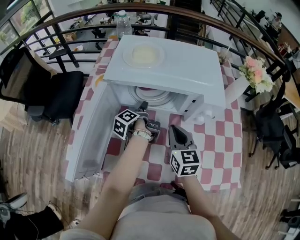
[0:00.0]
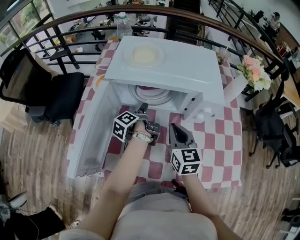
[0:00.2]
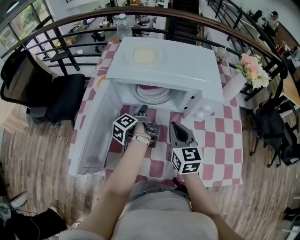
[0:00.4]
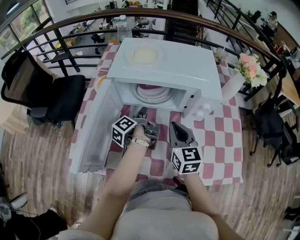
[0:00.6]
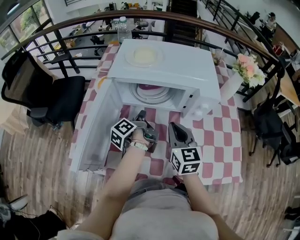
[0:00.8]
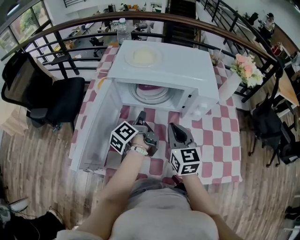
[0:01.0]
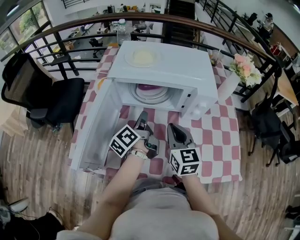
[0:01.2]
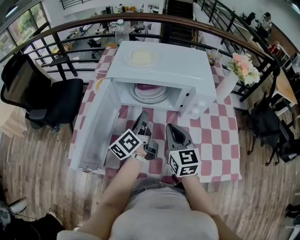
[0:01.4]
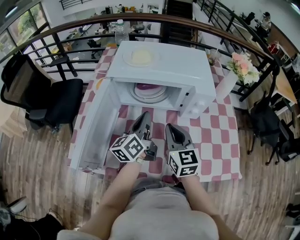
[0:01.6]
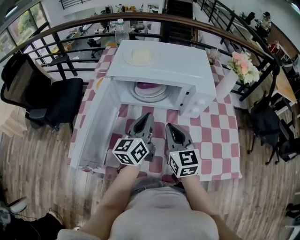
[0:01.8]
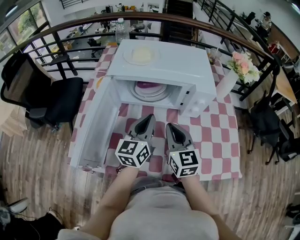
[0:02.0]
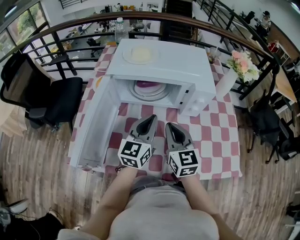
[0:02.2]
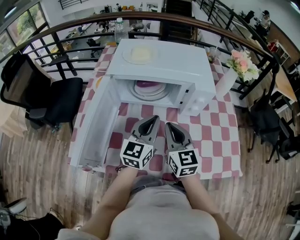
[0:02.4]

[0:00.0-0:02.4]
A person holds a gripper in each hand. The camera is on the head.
0:00.0 to 0:01.2: The right gripper changes place by approximately 10 cm.

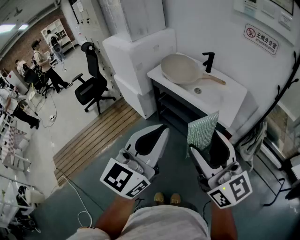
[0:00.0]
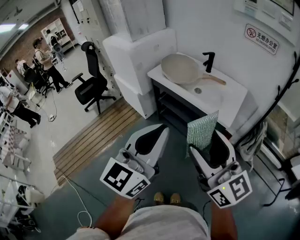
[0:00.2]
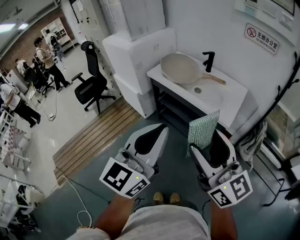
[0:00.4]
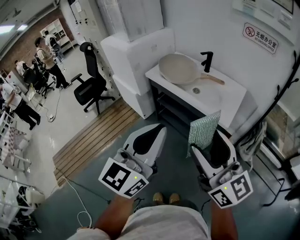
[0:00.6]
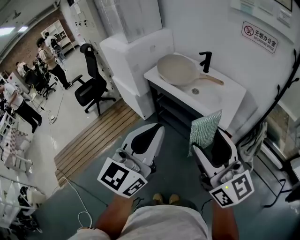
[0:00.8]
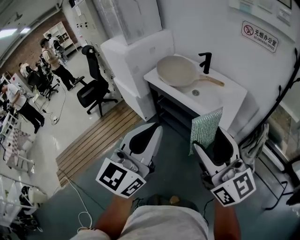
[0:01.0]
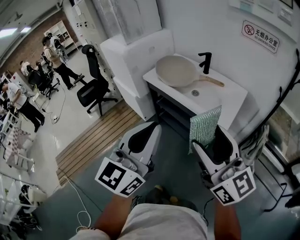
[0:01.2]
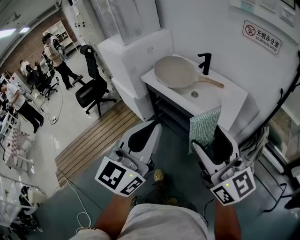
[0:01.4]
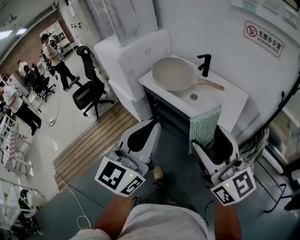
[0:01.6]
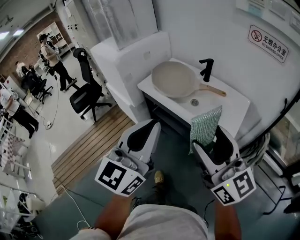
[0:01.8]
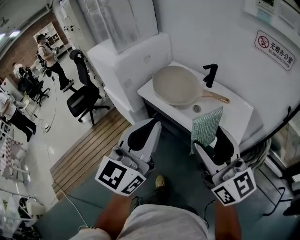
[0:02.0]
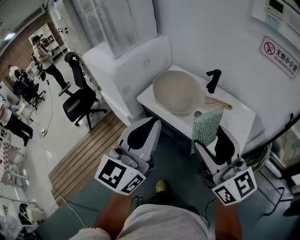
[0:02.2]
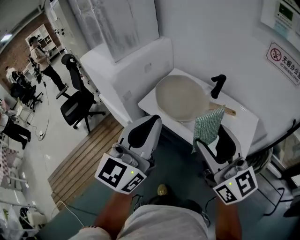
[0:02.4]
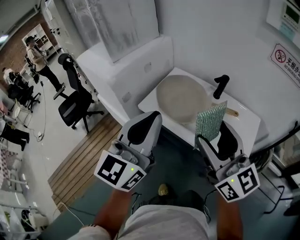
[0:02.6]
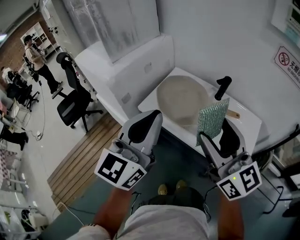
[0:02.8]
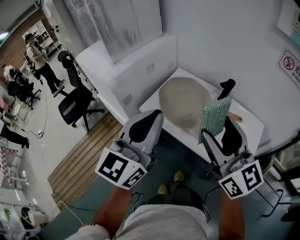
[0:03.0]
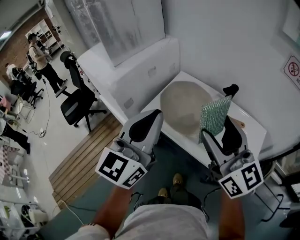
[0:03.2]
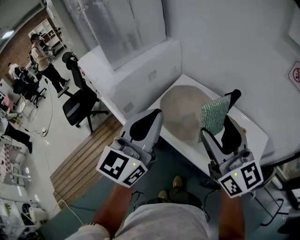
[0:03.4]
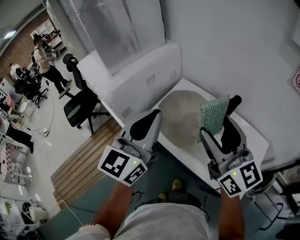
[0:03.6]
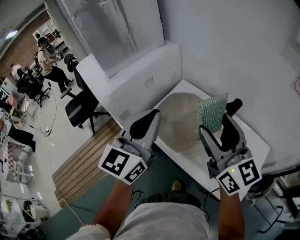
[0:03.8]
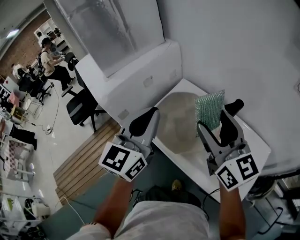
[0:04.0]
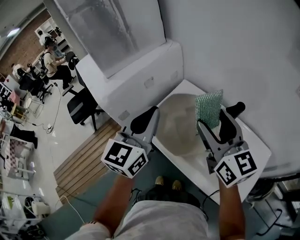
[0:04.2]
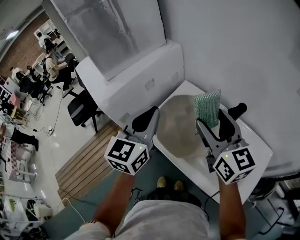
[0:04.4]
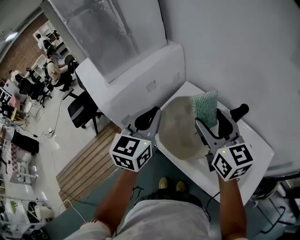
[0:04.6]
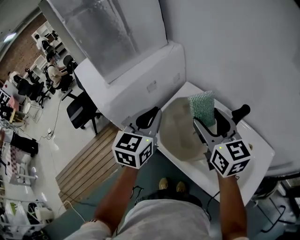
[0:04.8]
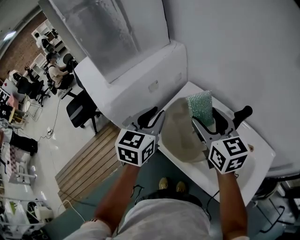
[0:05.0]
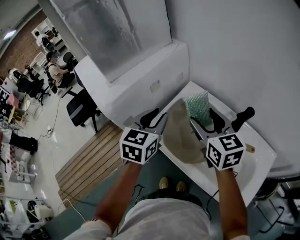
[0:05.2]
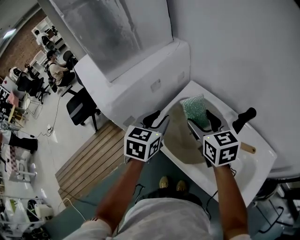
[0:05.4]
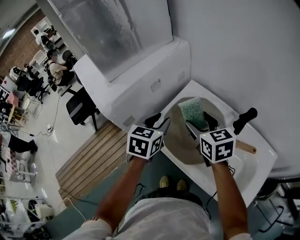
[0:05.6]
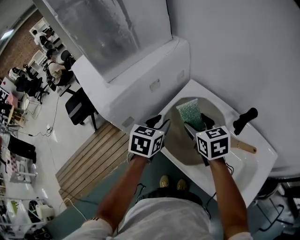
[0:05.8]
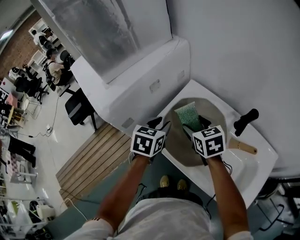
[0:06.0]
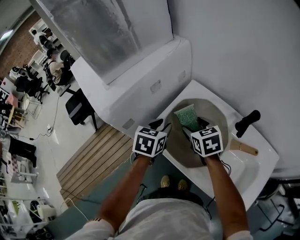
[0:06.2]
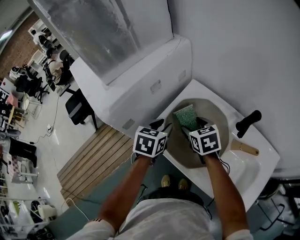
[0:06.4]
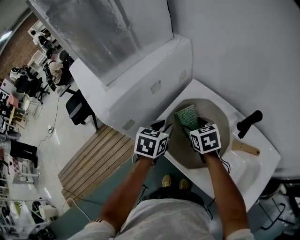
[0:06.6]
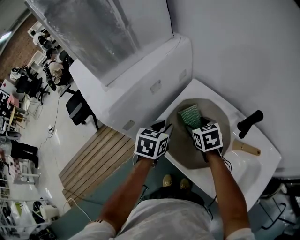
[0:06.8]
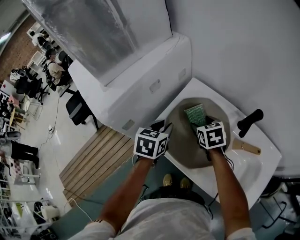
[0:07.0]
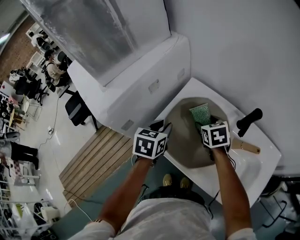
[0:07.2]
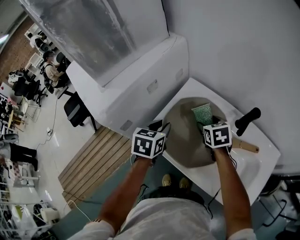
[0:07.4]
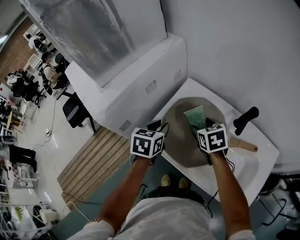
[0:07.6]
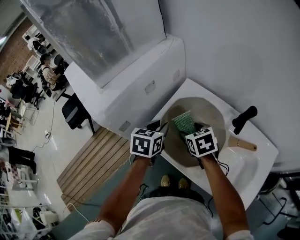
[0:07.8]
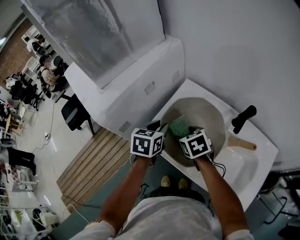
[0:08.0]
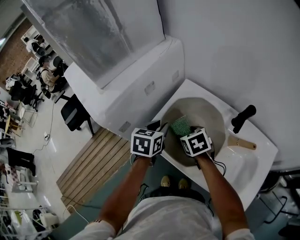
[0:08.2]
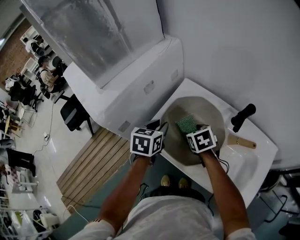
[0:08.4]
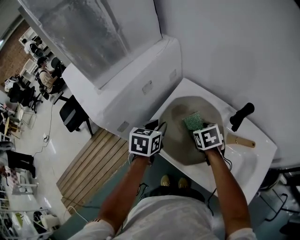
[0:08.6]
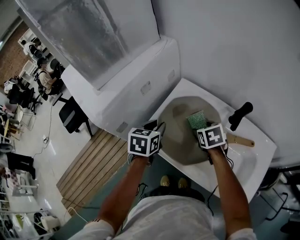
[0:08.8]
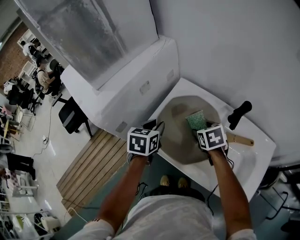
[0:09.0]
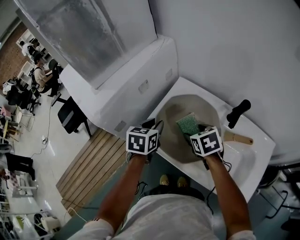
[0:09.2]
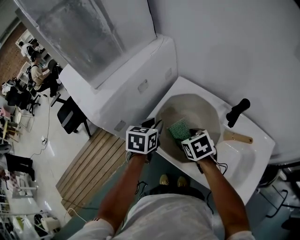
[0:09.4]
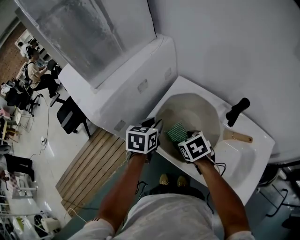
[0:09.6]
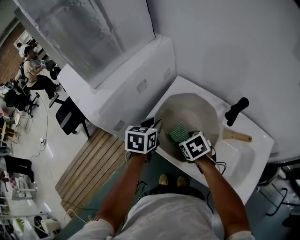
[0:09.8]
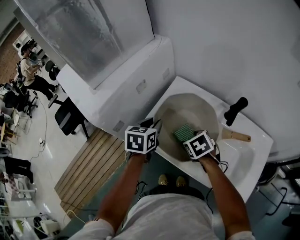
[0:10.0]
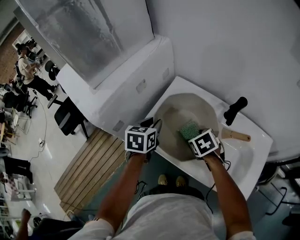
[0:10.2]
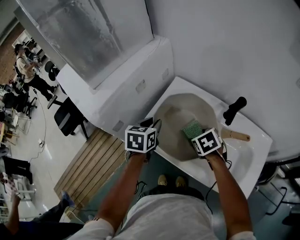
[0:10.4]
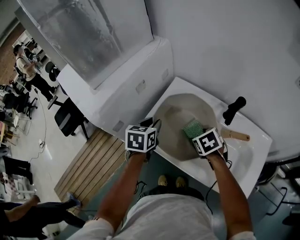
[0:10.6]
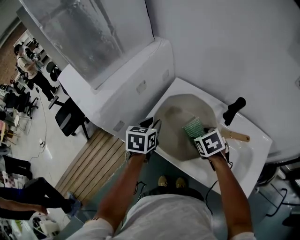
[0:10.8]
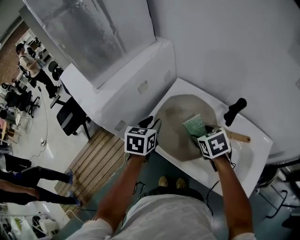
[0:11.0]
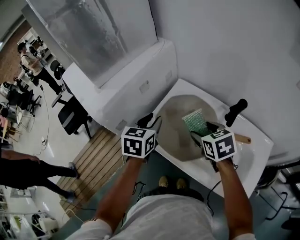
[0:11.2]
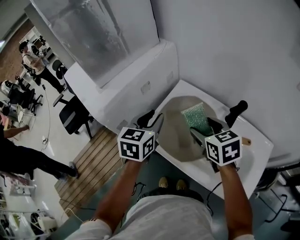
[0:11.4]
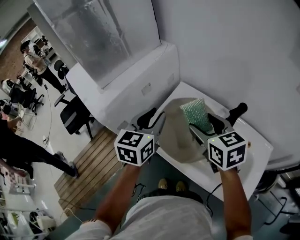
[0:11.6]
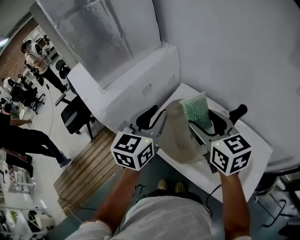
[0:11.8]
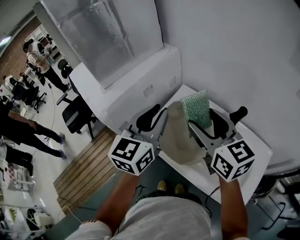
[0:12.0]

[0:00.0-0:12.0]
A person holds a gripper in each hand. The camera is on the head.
0:00.0 to 0:01.6: The right gripper shifts about 10 cm forward and to the right. Meanwhile the left gripper heads forward, covering some 10 cm.
0:01.6 to 0:03.0: The two grippers go roughly 30 cm forward.
0:03.0 to 0:04.4: Both grippers travel together forward, some 20 cm.
0:04.4 to 0:06.0: The right gripper moves downward and forward, roughly 20 cm, and tips its fingers downward by approximately 40 degrees, while the left gripper heads downward, covering some 20 cm, tilts its fingers about 30 degrees downward, and opens up.
0:09.0 to 0:10.4: The right gripper reaches about 10 cm to the left, then returns.
0:10.4 to 0:12.0: Both grippers move upward, some 25 cm. The right gripper points its fingers some 50 degrees further upward, while the left gripper angles its fingers upward, by roughly 30 degrees.

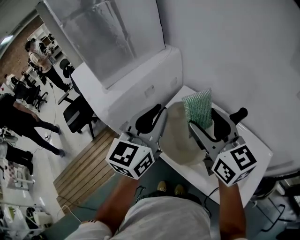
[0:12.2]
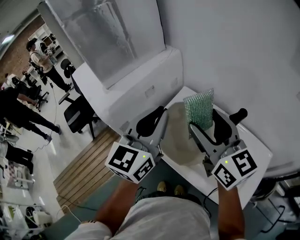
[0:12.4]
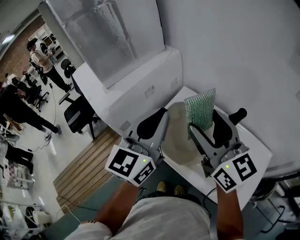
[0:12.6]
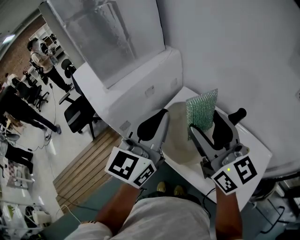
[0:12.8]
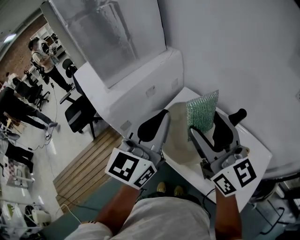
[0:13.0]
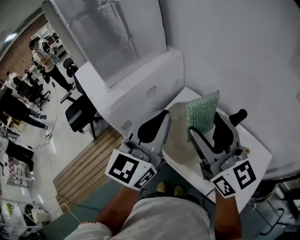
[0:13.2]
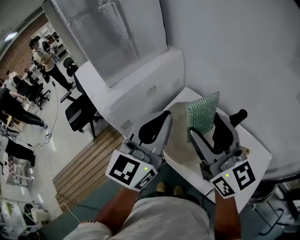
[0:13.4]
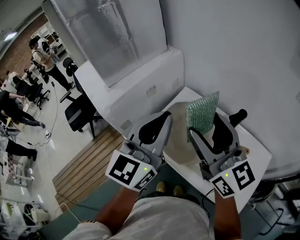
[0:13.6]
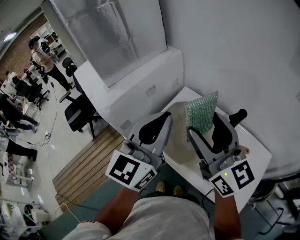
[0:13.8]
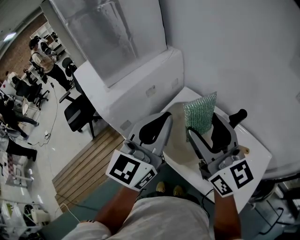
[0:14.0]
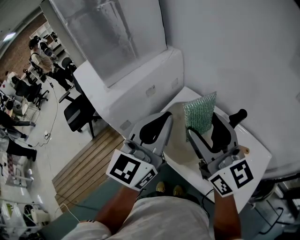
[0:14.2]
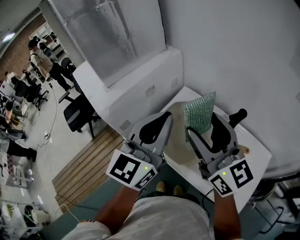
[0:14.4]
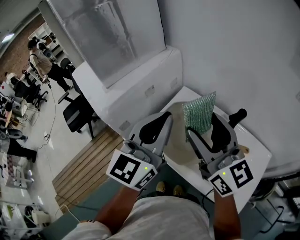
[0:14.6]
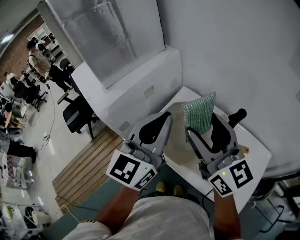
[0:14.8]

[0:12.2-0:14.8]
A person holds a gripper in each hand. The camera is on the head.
0:12.2 to 0:13.4: The right gripper ends up some 5 cm from where it was, while the left gripper moves roughly 5 cm.
0:13.4 to 0:14.8: Both grippers stay put.

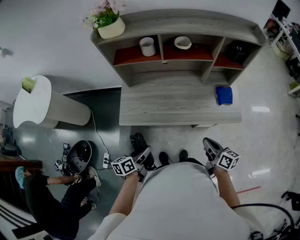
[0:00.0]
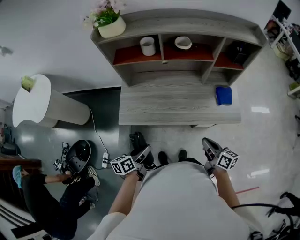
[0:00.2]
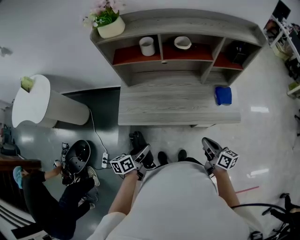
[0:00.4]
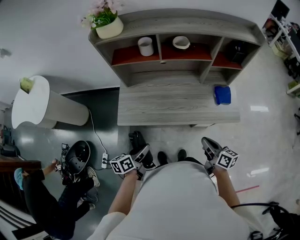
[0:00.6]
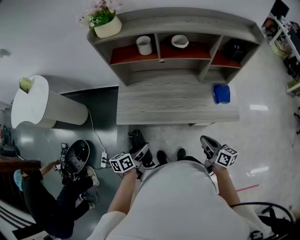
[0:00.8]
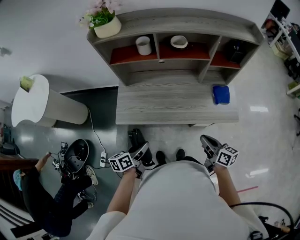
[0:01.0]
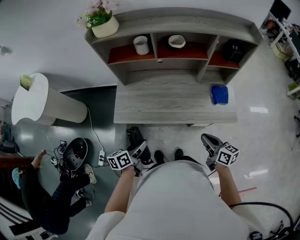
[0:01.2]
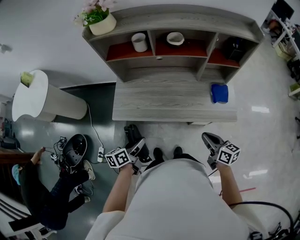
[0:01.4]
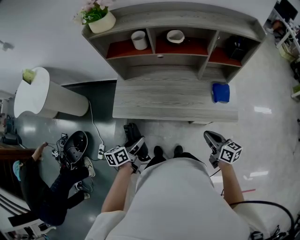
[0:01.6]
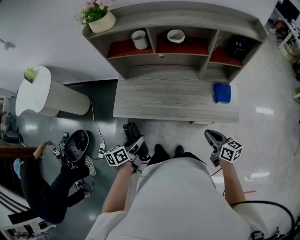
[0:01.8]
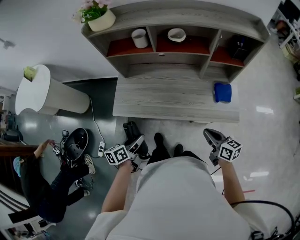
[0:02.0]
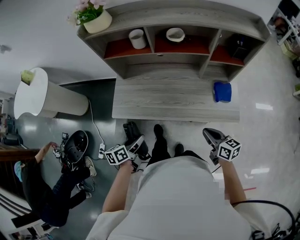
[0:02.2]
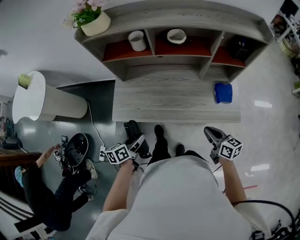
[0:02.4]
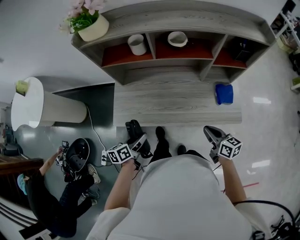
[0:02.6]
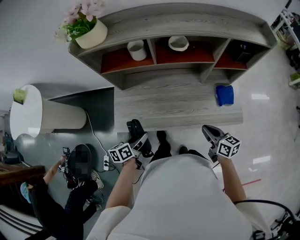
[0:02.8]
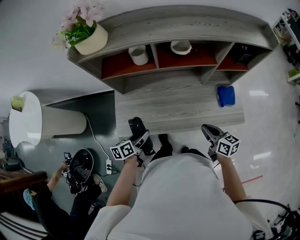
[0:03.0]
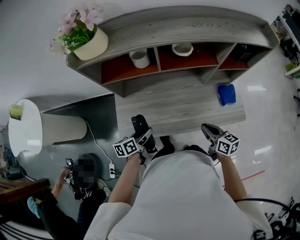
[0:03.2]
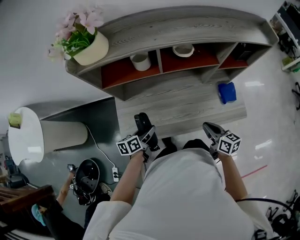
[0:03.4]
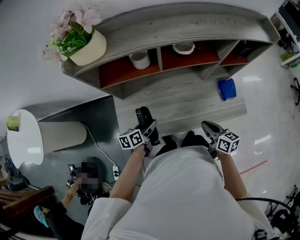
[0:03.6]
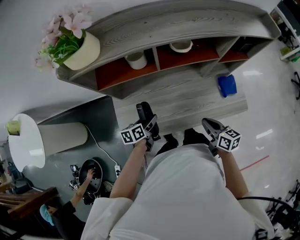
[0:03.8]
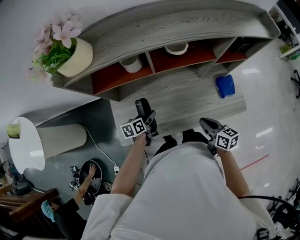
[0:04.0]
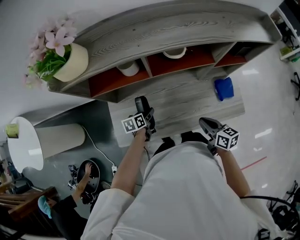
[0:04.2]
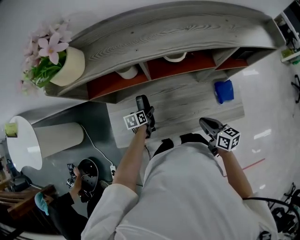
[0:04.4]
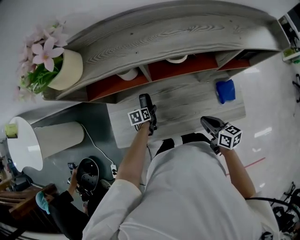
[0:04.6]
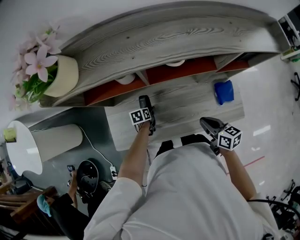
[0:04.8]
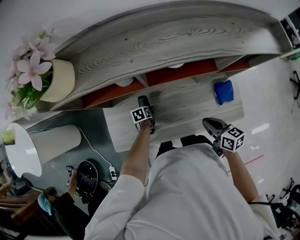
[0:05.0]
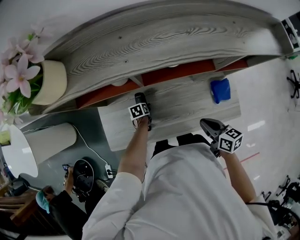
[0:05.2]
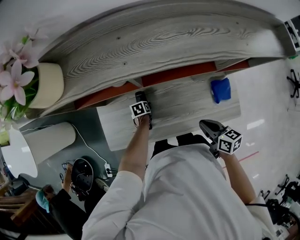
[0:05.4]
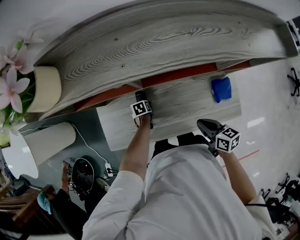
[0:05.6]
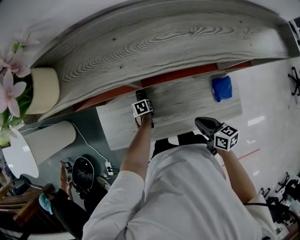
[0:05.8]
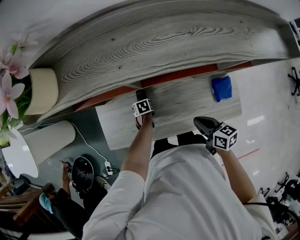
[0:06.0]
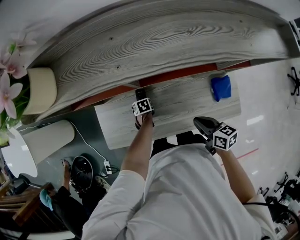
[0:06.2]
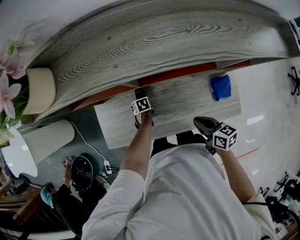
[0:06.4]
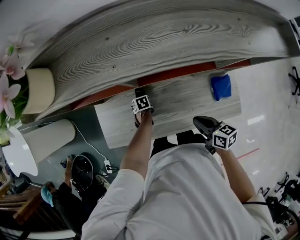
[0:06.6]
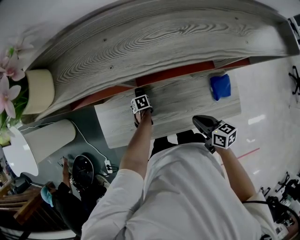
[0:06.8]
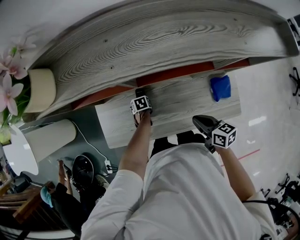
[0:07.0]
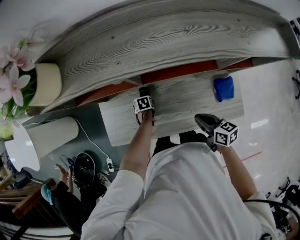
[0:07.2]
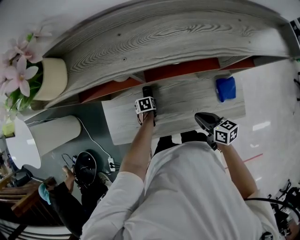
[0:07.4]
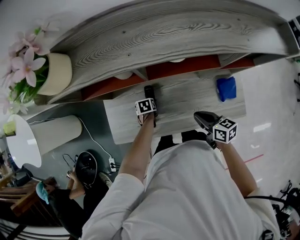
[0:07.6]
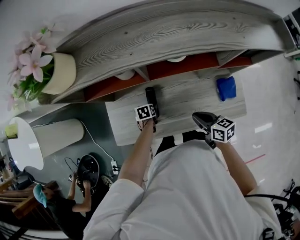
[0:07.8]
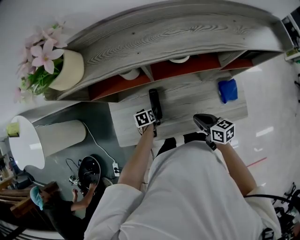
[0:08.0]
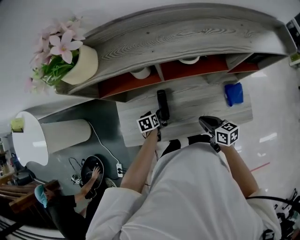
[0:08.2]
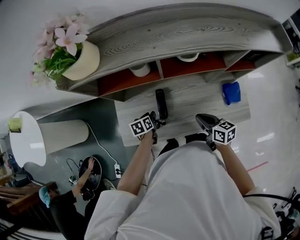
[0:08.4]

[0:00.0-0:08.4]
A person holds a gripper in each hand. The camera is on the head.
0:00.0 to 0:01.4: The right gripper moves approximately 5 cm.
0:01.4 to 0:02.8: The grippers both shift forward by about 10 cm.
0:02.8 to 0:04.2: The right gripper goes about 10 cm forward, while the left gripper heads forward and downward, covering about 25 cm.
0:04.2 to 0:05.6: The left gripper goes approximately 15 cm downward, and turns by about 30 degrees.
0:05.6 to 0:07.0: There are only small adjustments of the grippers.
0:07.0 to 0:08.4: The right gripper moves roughly 5 cm. Meanwhile the left gripper heads upward, covering some 15 cm, swivels some 20 degrees, and closes its fingers.
